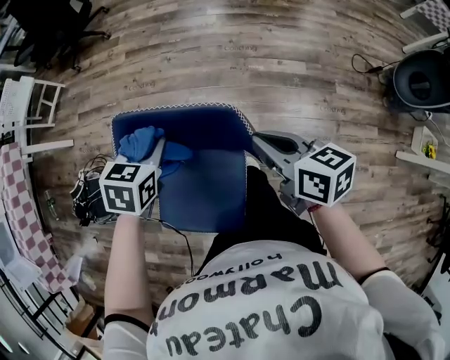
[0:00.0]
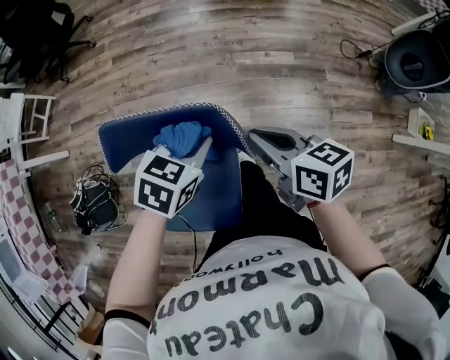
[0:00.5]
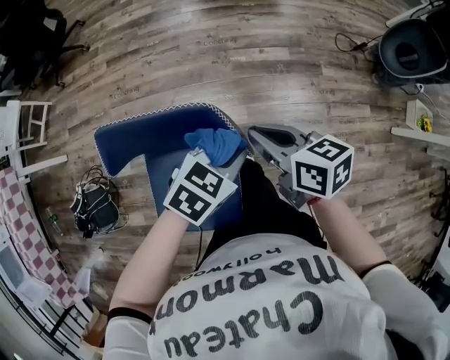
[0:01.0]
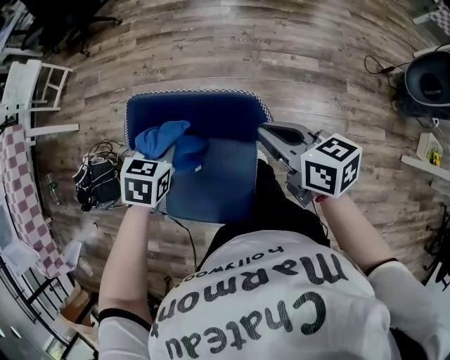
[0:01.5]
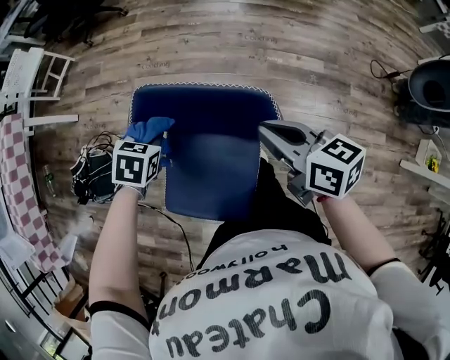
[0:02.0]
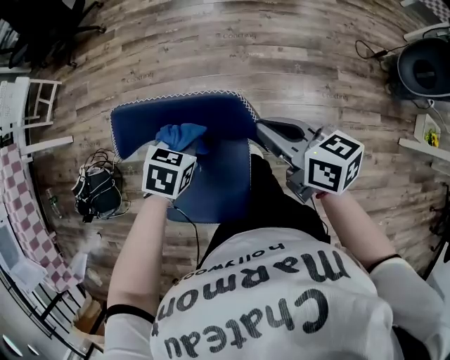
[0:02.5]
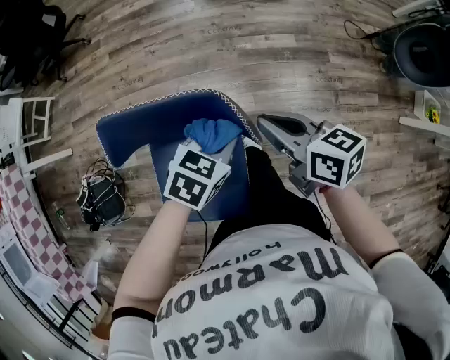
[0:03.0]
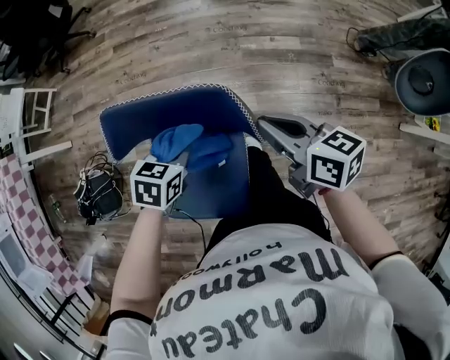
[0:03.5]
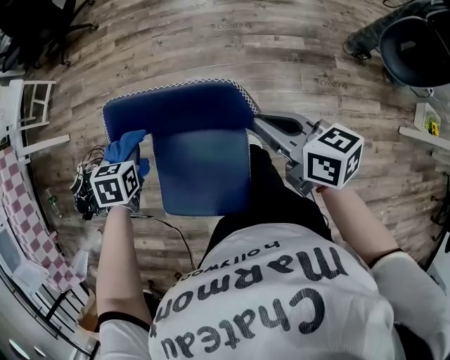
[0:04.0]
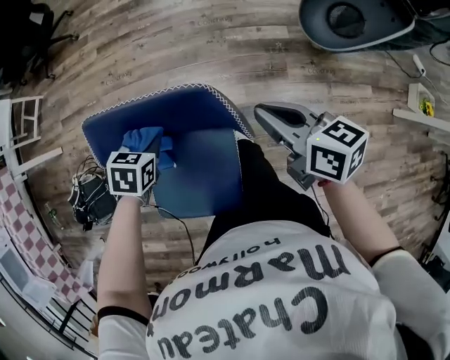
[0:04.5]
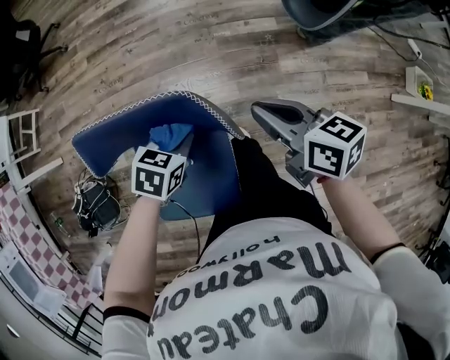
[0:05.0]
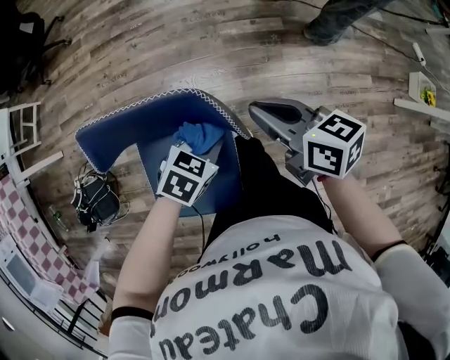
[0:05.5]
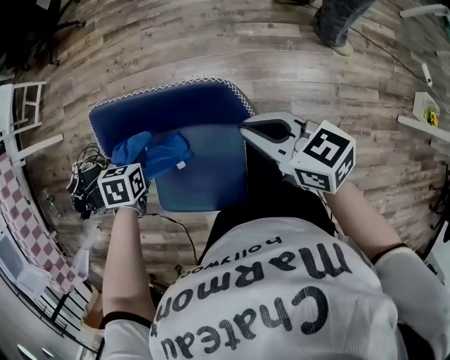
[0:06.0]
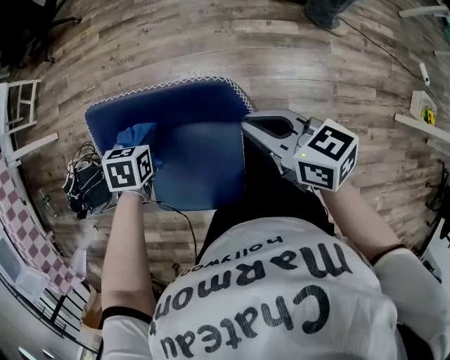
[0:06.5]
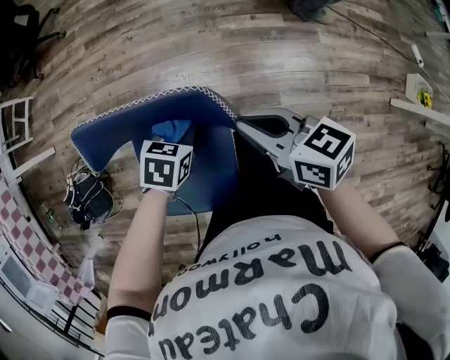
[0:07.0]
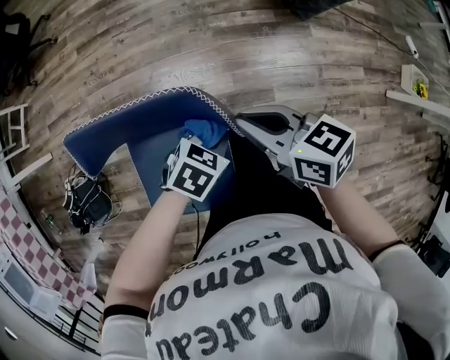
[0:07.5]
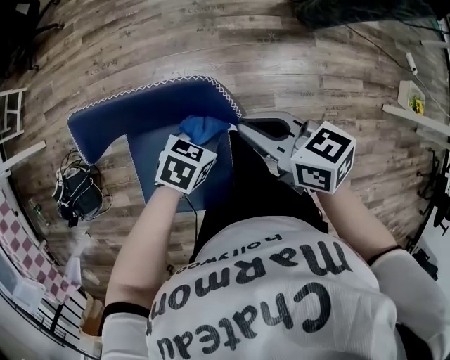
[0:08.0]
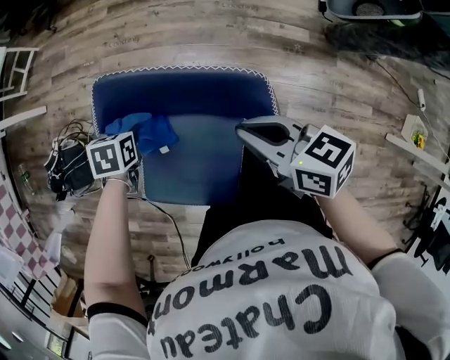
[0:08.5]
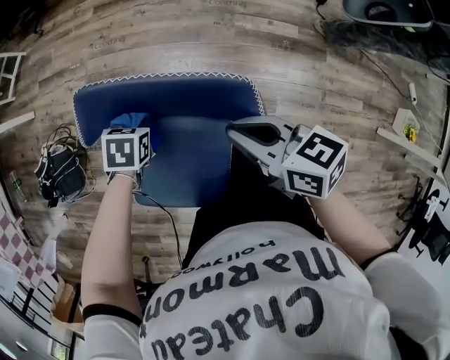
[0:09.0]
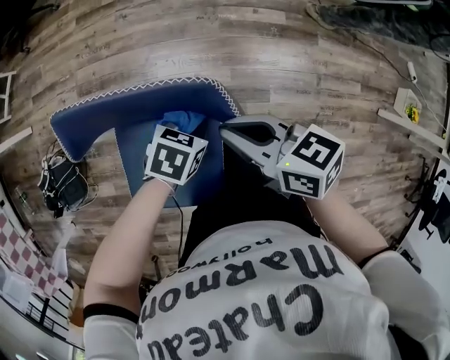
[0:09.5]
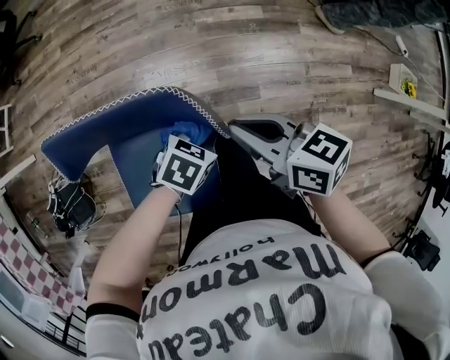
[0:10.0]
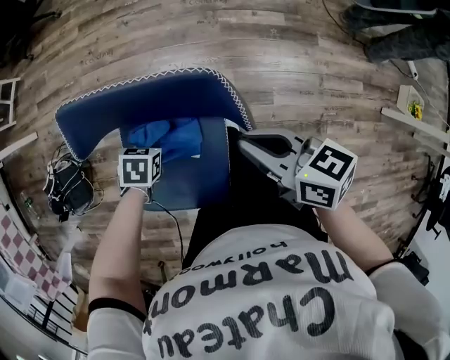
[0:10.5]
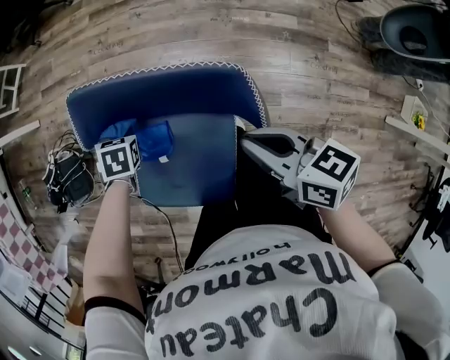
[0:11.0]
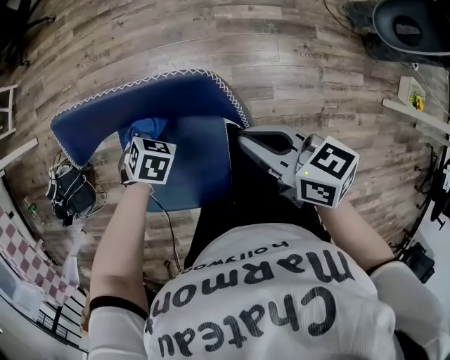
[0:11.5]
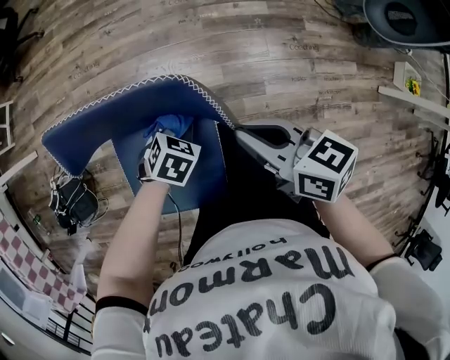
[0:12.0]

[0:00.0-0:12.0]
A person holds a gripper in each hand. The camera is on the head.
0:00.0 to 0:02.0: The right gripper ends up some 5 cm from where it was.
0:06.0 to 0:08.0: The left gripper changes place by about 25 cm, and turns by some 40 degrees.

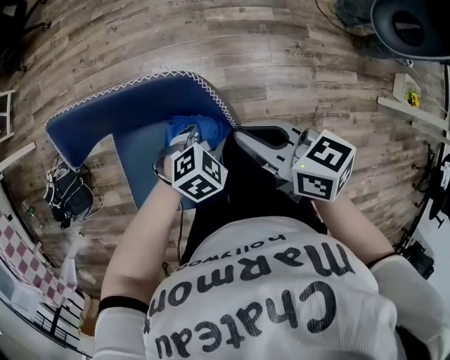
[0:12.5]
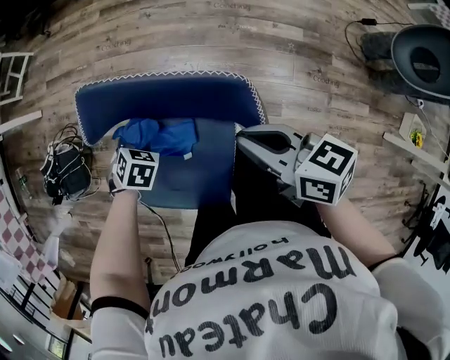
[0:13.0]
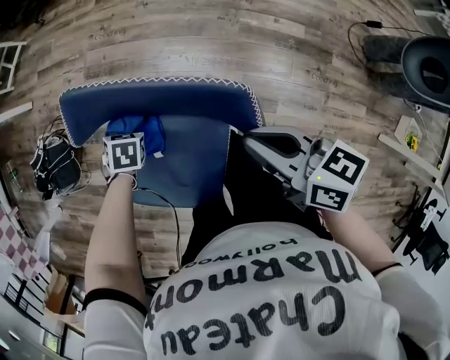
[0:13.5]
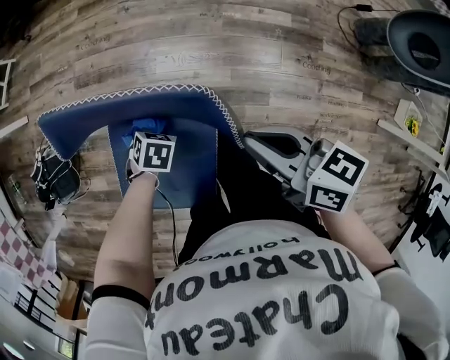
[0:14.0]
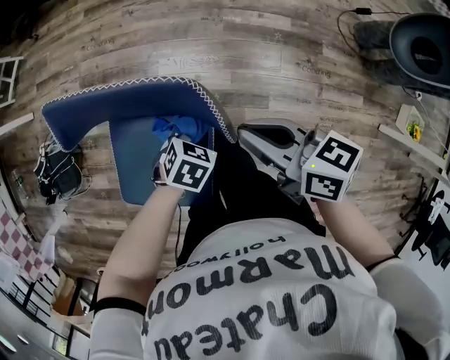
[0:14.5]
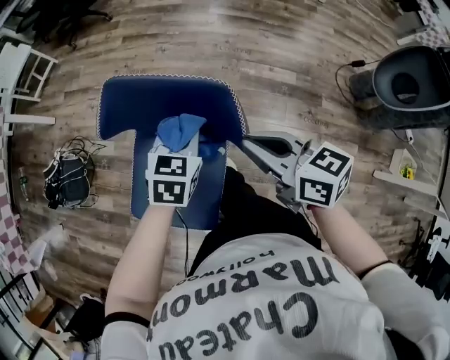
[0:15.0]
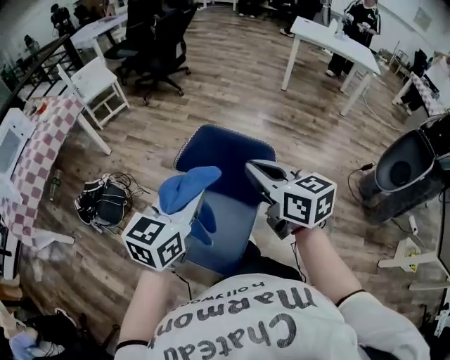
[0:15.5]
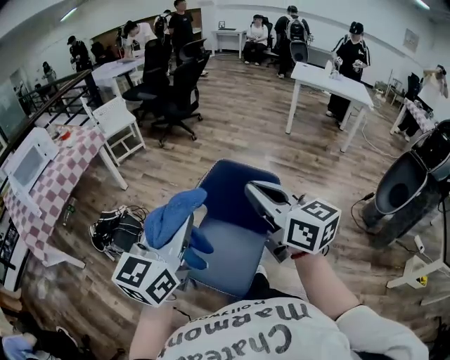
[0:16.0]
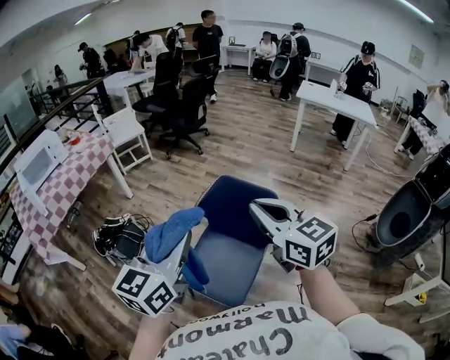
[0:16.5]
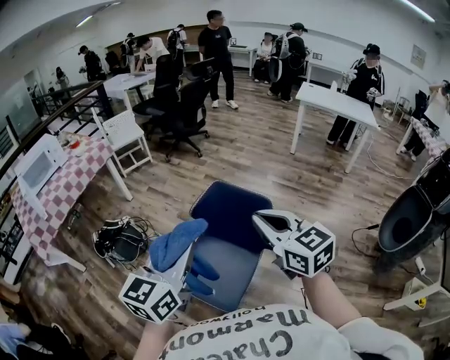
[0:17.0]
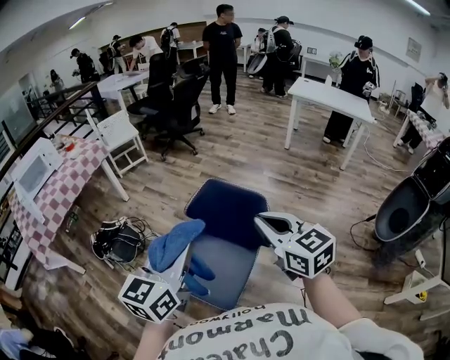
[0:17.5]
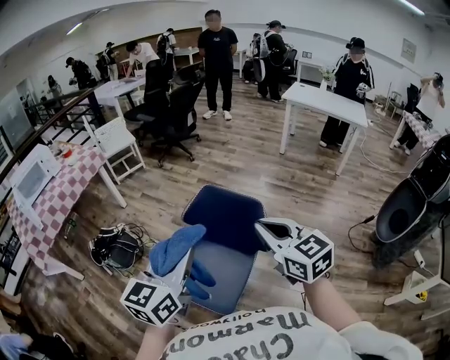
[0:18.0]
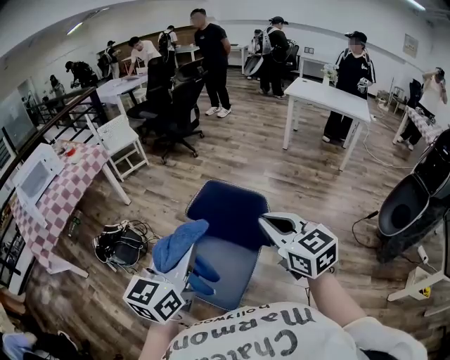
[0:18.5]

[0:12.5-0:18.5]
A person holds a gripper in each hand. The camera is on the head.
0:12.5 to 0:14.5: The left gripper turns by about 40 degrees.
0:14.5 to 0:16.5: The left gripper goes roughly 60 cm upward and to the left, and points its fingers approximately 70 degrees further upward, while the right gripper moves upward and to the left, some 40 cm, and twists approximately 40 degrees counterclockwise, seen from behind.
0:16.5 to 0:18.5: Both grippers travel together to the right, roughly 5 cm.

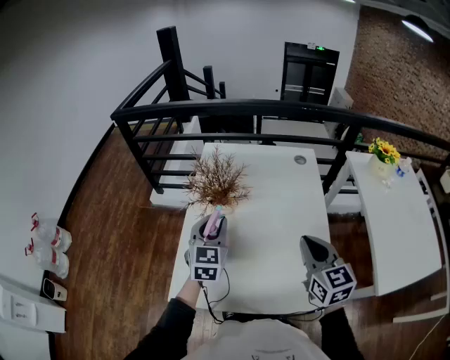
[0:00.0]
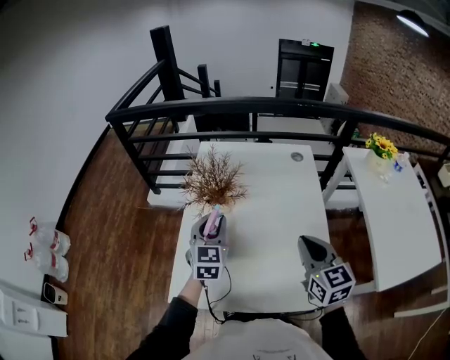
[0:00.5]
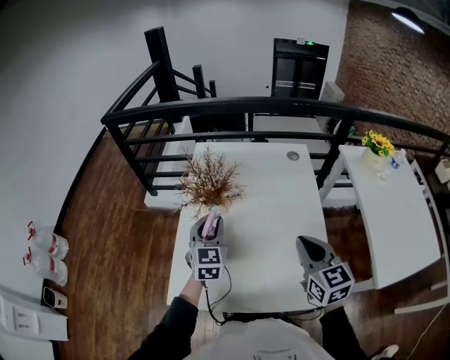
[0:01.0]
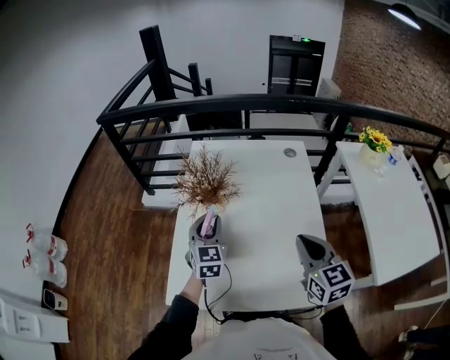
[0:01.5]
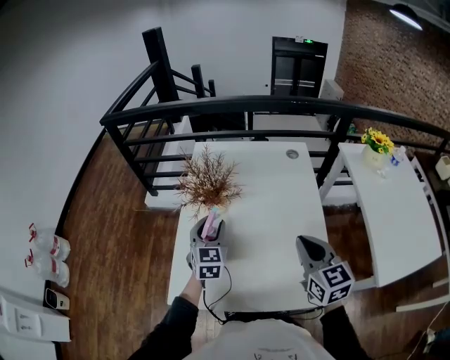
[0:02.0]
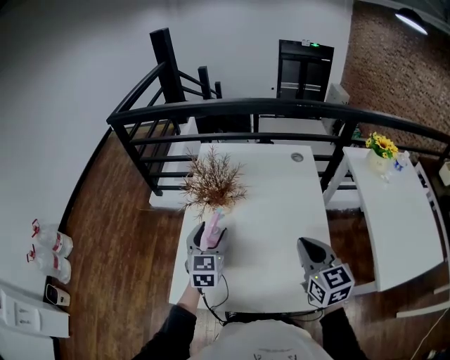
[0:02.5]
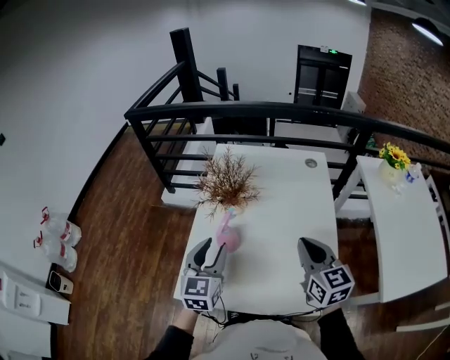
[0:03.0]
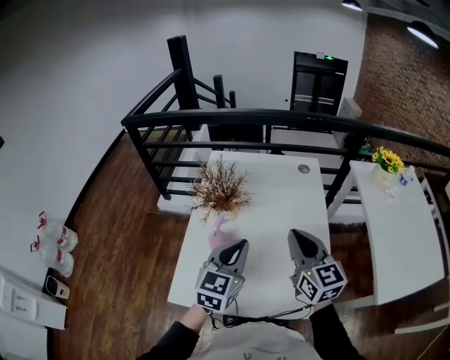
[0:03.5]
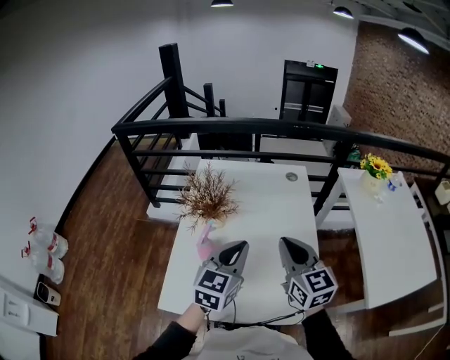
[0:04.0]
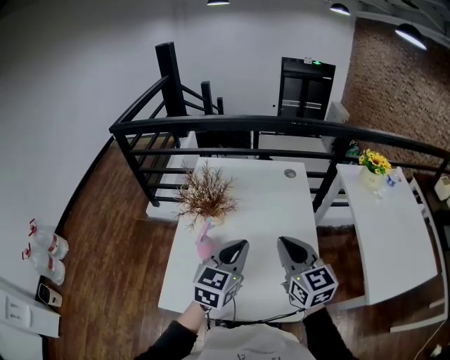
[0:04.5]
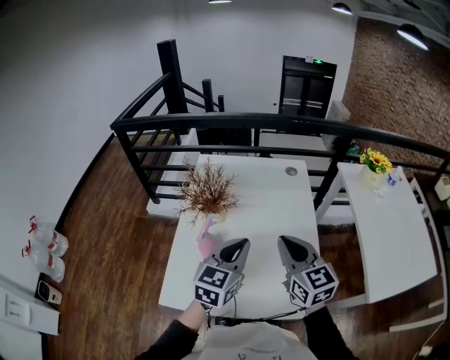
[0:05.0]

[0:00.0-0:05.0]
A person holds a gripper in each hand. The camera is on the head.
0:00.0 to 0:02.5: The left gripper opens its fingers.
0:02.5 to 0:05.0: The right gripper goes roughly 5 cm upward; the left gripper is displaced to the right, upward and backward by some 20 cm, rotates some 20 degrees, and closes.

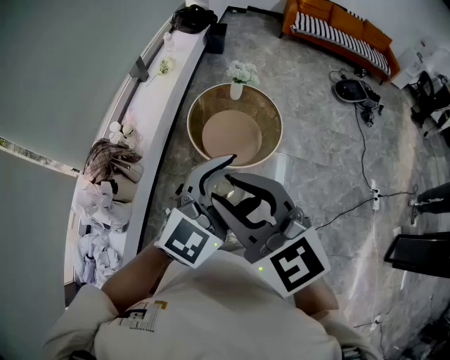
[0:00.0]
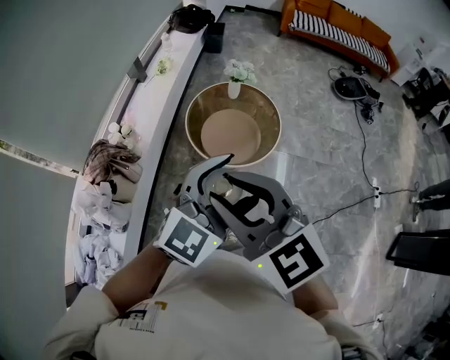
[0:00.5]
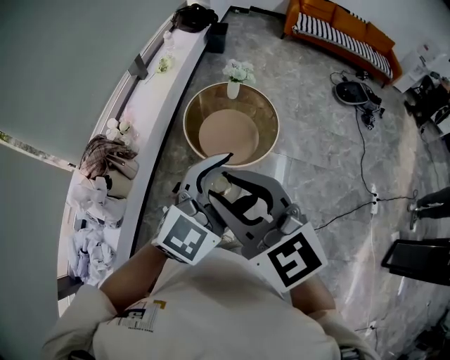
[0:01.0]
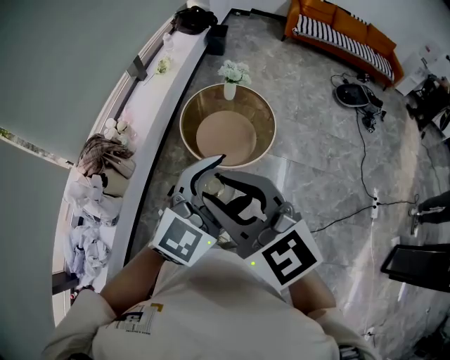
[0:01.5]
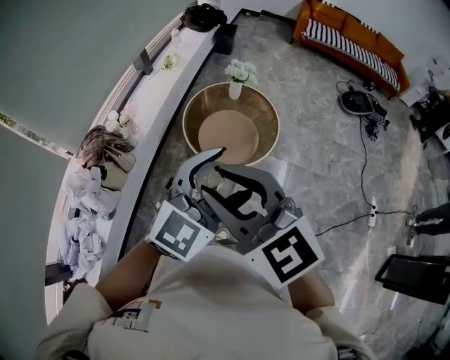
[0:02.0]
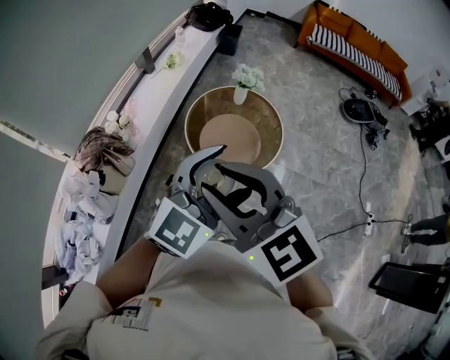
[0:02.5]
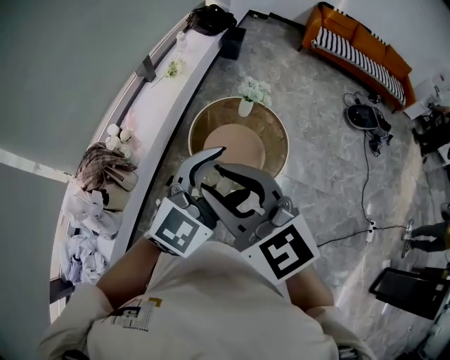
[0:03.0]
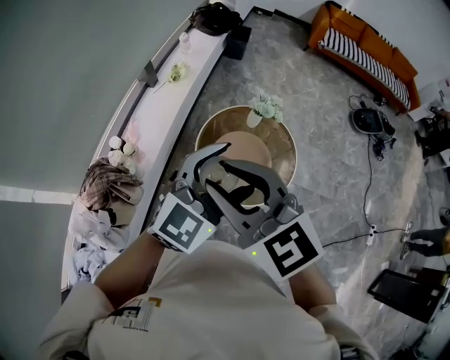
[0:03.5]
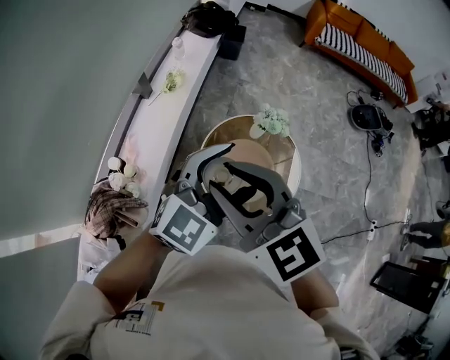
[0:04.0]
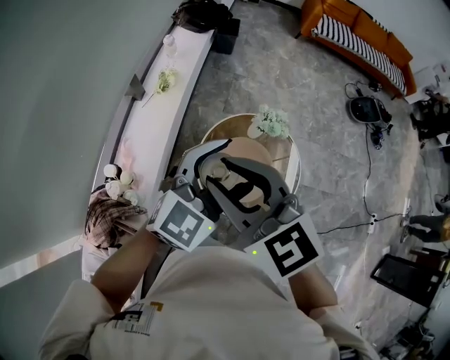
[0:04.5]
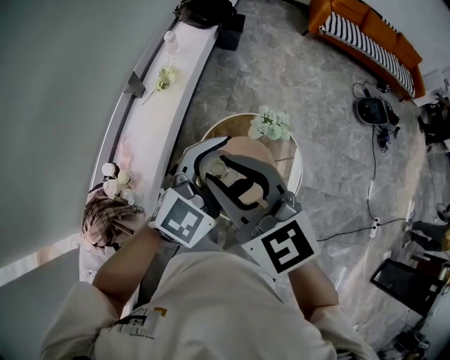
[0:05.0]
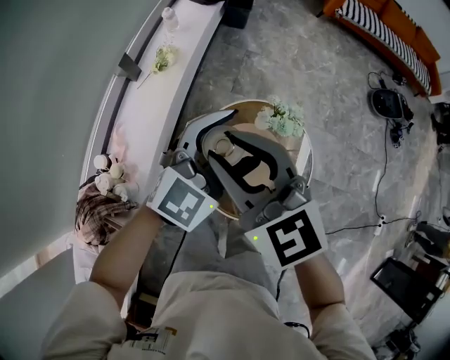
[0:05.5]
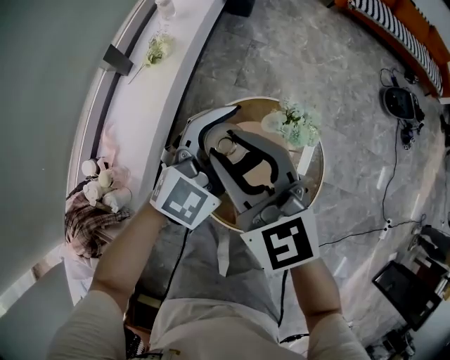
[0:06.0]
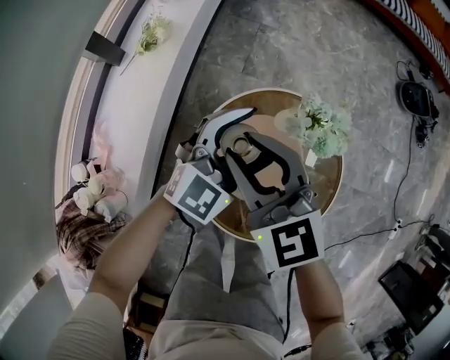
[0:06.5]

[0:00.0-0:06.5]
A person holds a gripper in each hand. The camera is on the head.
0:00.0 to 0:02.0: The two grippers go roughly 5 cm to the right.
0:02.0 to 0:04.5: The two grippers travel together, forward, roughly 50 cm.
0:04.5 to 0:06.5: The grippers both shift downward and forward by about 40 cm.
